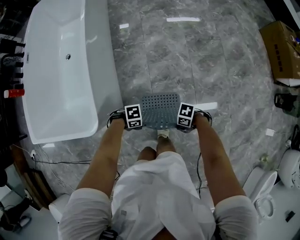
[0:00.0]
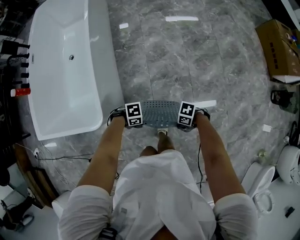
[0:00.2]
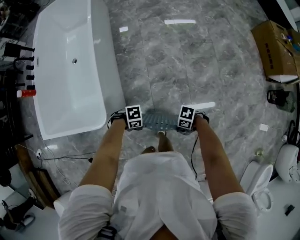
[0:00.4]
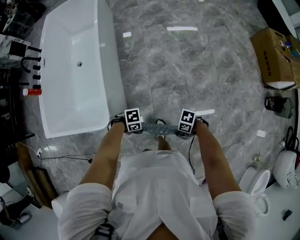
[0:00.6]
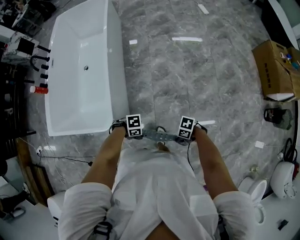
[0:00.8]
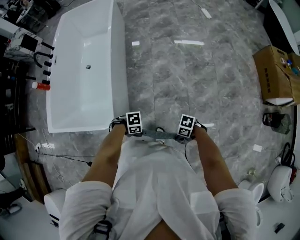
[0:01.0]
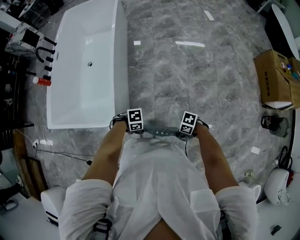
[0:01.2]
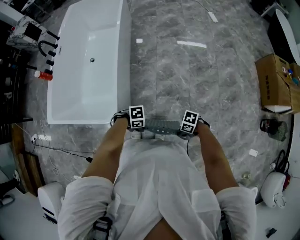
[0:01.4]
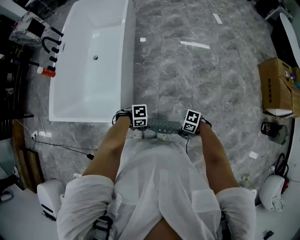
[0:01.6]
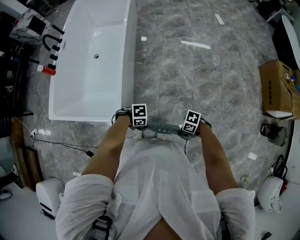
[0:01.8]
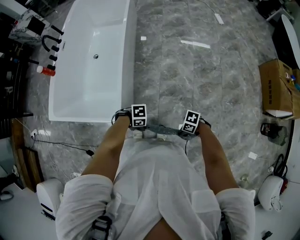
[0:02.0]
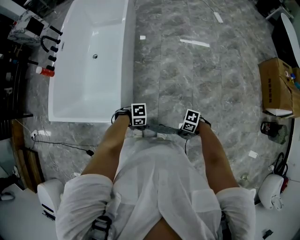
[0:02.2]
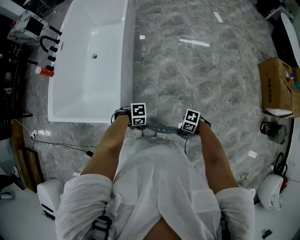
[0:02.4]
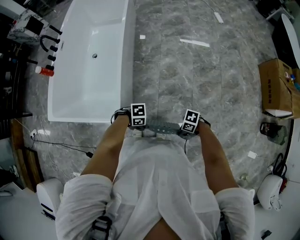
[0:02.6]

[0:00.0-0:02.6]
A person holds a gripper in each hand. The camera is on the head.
0:00.0 to 0:01.2: The two grippers go about 25 cm upward.
0:01.2 to 0:02.6: The grippers move only a little.

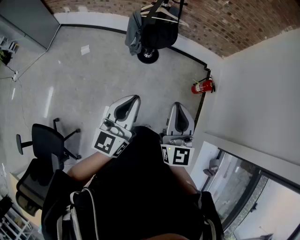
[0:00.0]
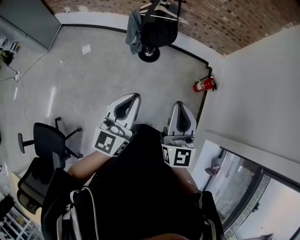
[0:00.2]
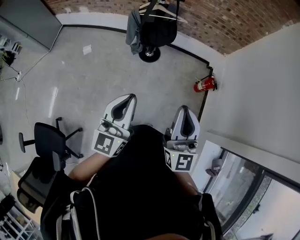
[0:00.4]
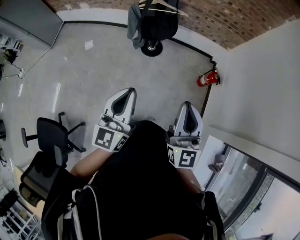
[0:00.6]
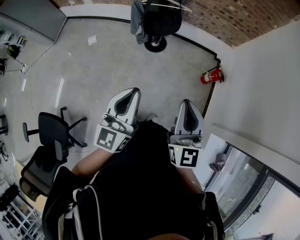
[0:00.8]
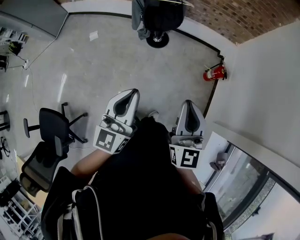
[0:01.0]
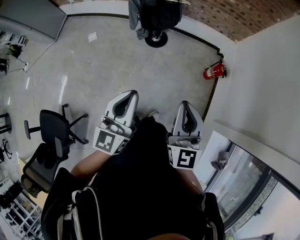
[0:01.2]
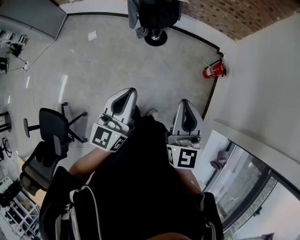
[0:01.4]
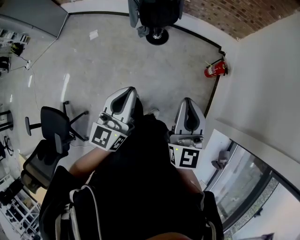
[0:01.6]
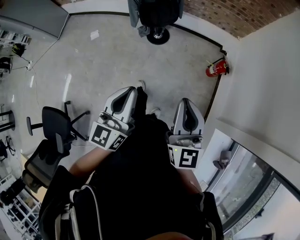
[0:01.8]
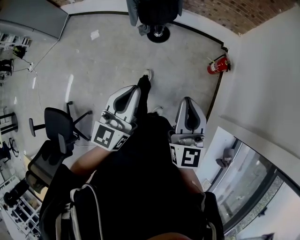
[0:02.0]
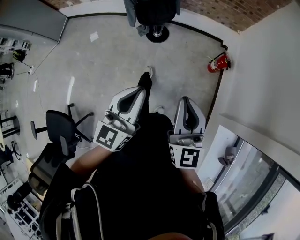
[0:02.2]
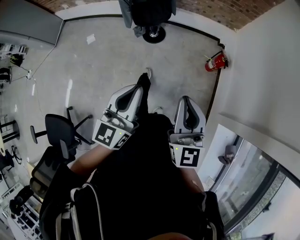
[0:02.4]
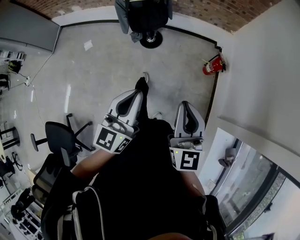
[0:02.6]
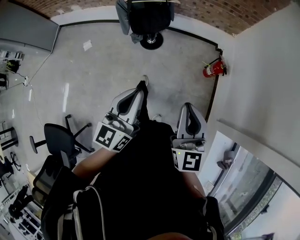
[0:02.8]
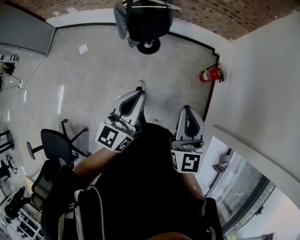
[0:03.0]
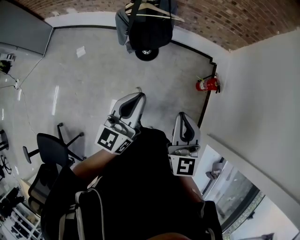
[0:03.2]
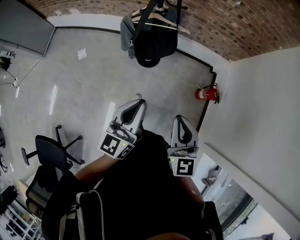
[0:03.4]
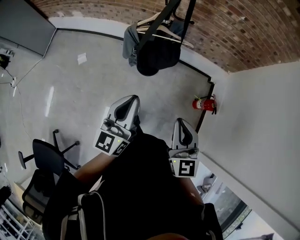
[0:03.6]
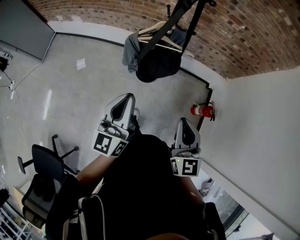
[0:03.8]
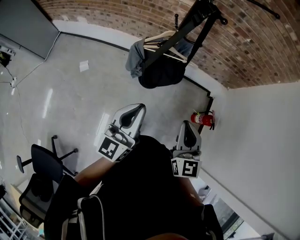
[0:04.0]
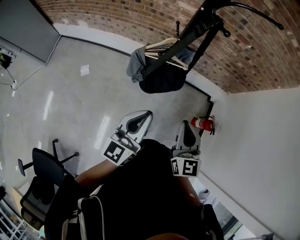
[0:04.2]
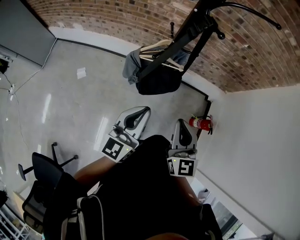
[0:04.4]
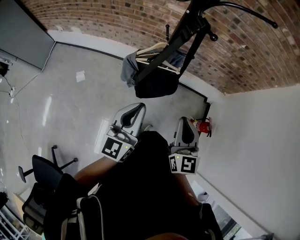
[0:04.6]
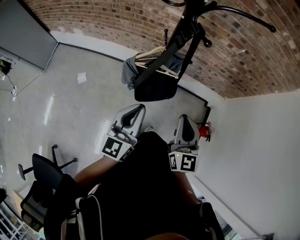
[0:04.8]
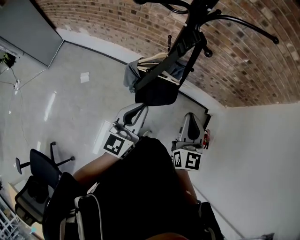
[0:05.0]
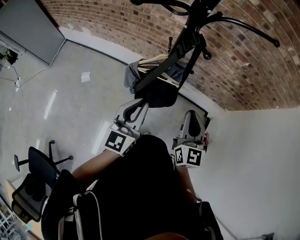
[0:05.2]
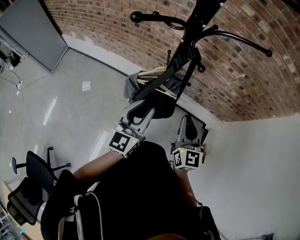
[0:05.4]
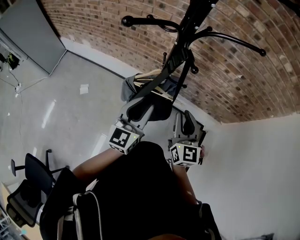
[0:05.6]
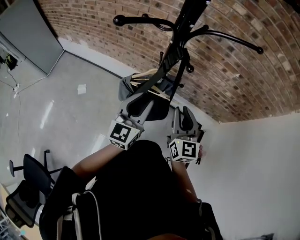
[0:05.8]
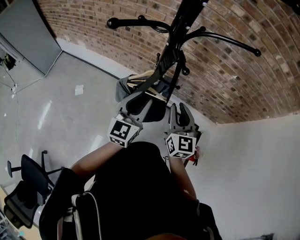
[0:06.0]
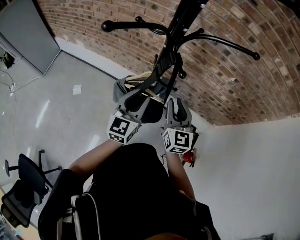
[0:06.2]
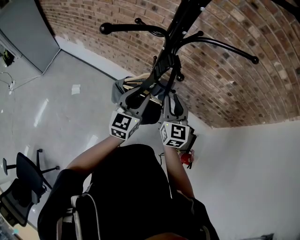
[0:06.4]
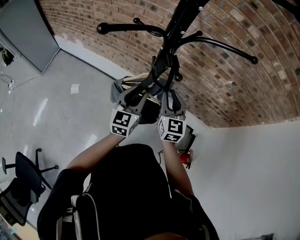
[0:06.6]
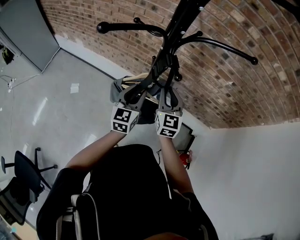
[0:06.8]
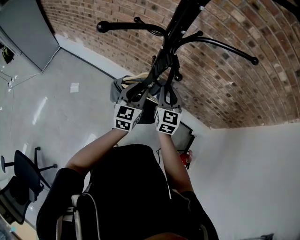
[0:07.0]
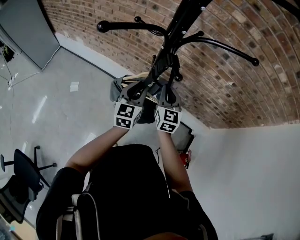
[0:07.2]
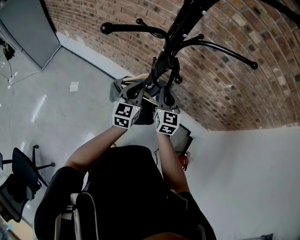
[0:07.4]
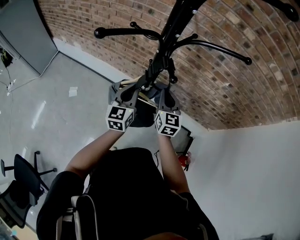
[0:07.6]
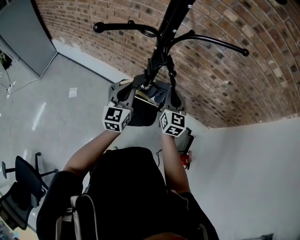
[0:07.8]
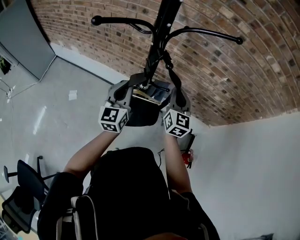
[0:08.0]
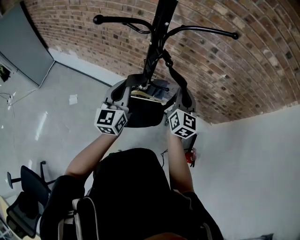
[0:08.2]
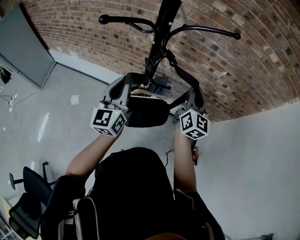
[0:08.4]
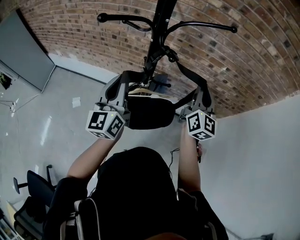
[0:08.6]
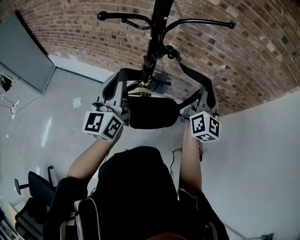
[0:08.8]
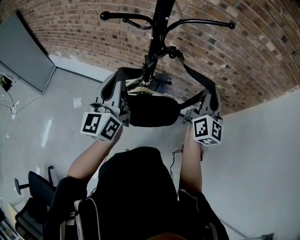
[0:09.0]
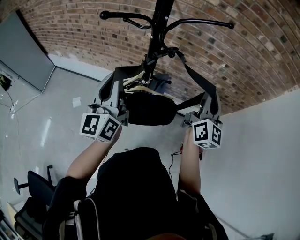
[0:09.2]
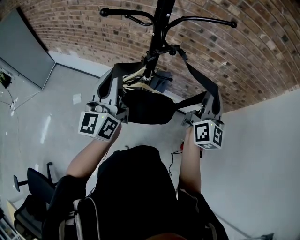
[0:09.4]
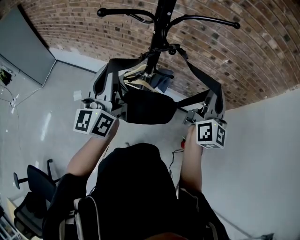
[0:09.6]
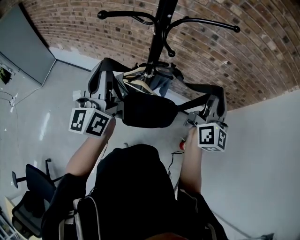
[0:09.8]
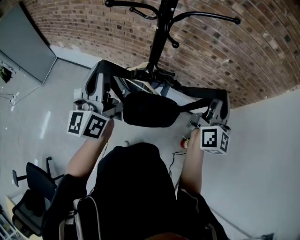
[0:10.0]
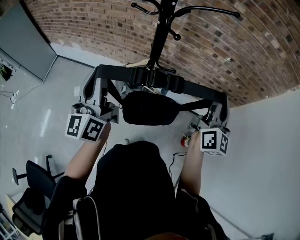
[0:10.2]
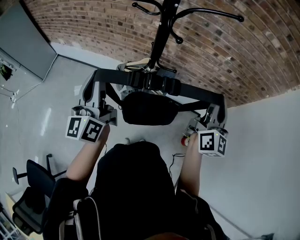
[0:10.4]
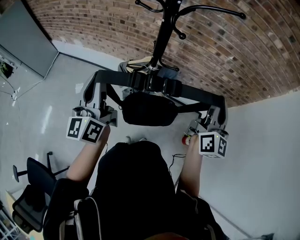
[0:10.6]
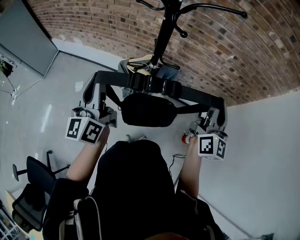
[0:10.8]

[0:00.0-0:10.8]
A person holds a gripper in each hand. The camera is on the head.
0:00.0 to 0:01.6: Both grippers move to the right, approximately 10 cm.
0:01.6 to 0:03.0: The two grippers go about 10 cm forward.
0:03.0 to 0:04.6: The right gripper goes about 30 cm forward; the left gripper is displaced forward and to the left by roughly 30 cm.
0:04.6 to 0:06.2: Both grippers travel together forward, some 20 cm. The left gripper opens its fingers.
0:06.2 to 0:07.8: The grippers both shift forward by about 5 cm. The left gripper closes up.
0:07.8 to 0:09.2: The right gripper moves upward, to the right and backward, roughly 20 cm, and changes its angle by some 30 degrees; the left gripper travels upward and backward by some 20 cm, and changes its angle by approximately 20 degrees.
0:09.2 to 0:10.8: The right gripper goes roughly 10 cm backward. Meanwhile the left gripper shifts some 10 cm backward and to the left.

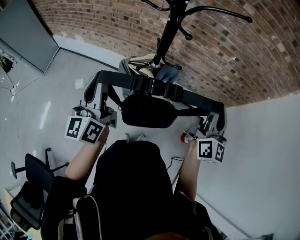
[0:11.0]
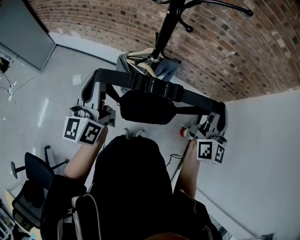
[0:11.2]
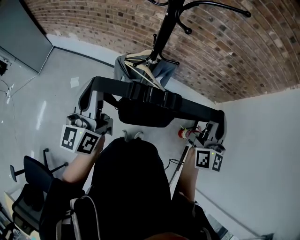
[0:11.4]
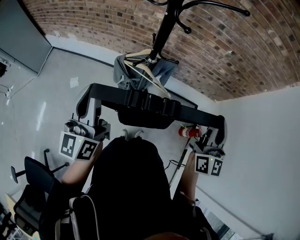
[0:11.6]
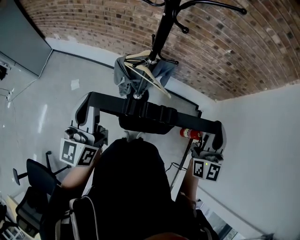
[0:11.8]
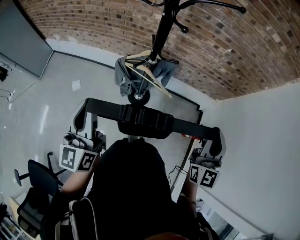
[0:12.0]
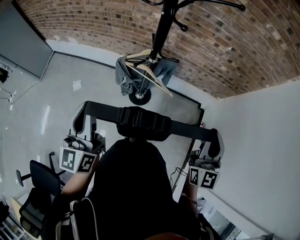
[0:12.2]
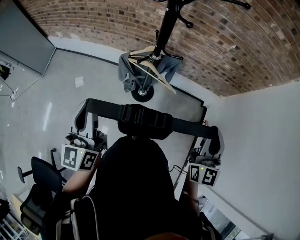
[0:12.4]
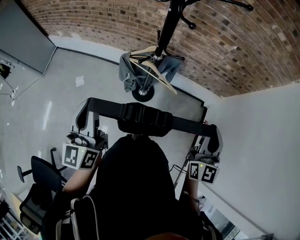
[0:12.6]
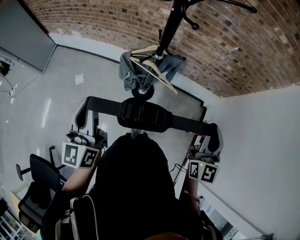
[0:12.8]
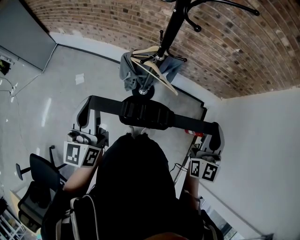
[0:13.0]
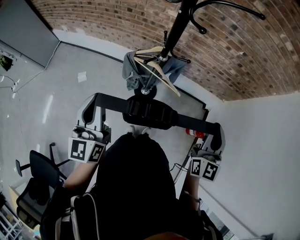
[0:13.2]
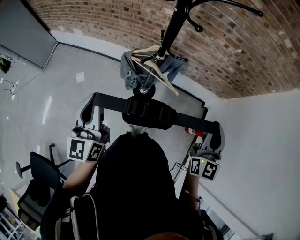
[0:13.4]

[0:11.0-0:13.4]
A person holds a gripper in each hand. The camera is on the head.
0:11.0 to 0:12.2: The two grippers go roughly 10 cm backward. The right gripper rotates roughly 20 degrees.
0:12.2 to 0:13.4: The right gripper moves approximately 5 cm.

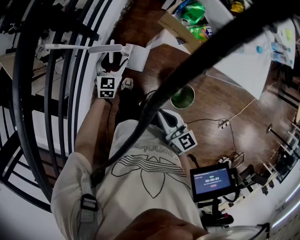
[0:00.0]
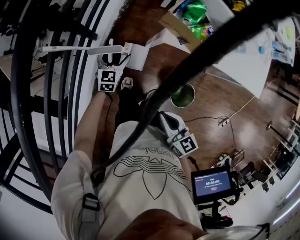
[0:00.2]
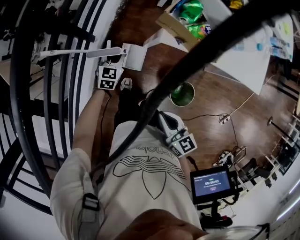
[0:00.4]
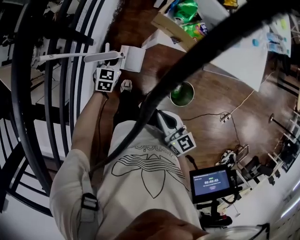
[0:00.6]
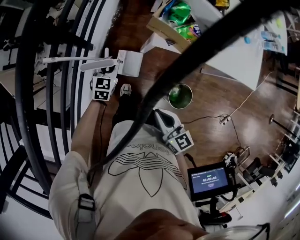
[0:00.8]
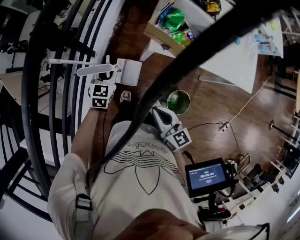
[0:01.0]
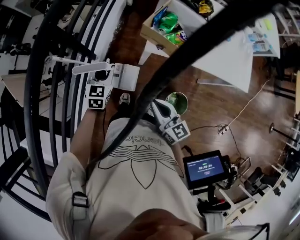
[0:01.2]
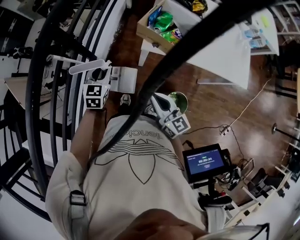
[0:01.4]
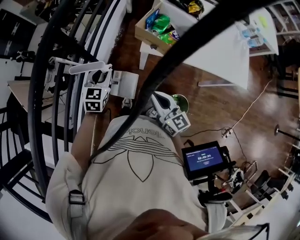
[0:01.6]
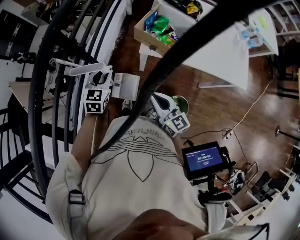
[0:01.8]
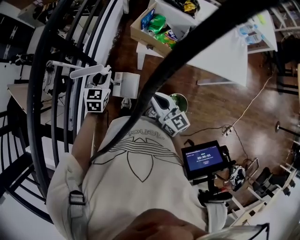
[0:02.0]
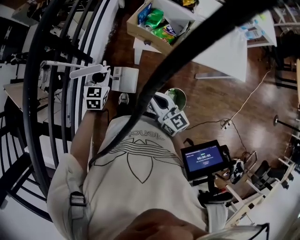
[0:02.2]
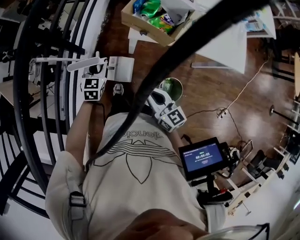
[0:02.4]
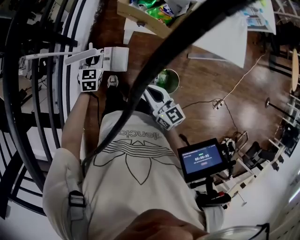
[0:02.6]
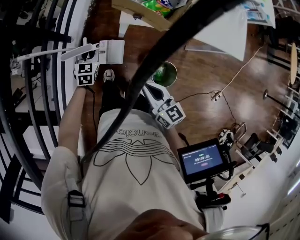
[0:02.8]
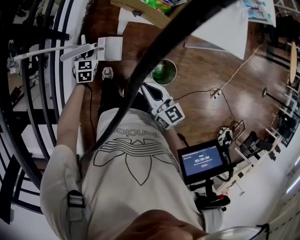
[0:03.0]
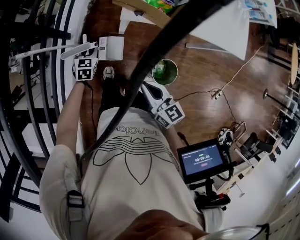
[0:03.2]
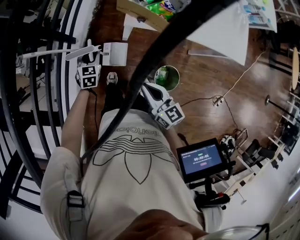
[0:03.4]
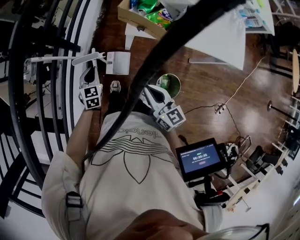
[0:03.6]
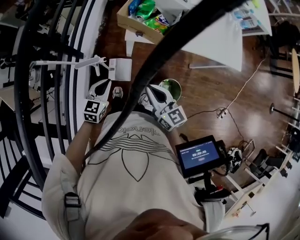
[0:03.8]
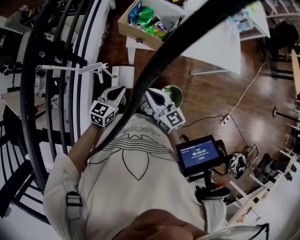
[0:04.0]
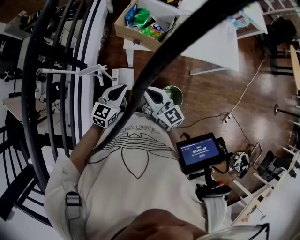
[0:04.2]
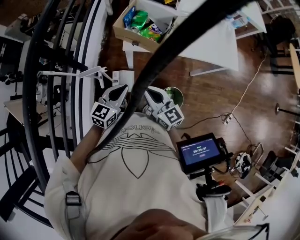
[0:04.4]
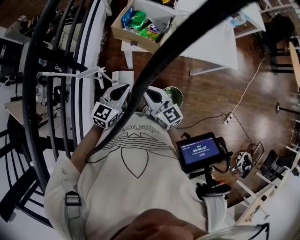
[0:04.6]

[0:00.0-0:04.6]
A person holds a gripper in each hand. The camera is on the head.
0:00.0 to 0:01.6: The right gripper travels upward by about 10 cm, and turns by some 20 degrees; the left gripper moves upward, about 20 cm, and closes its fingers.
0:01.6 to 0:03.0: The left gripper heads downward, covering roughly 20 cm, while the right gripper changes place by about 5 cm.
0:03.0 to 0:04.6: The right gripper changes place by about 5 cm, while the left gripper heads upward, backward and to the right, covering about 25 cm, and rotates some 30 degrees.

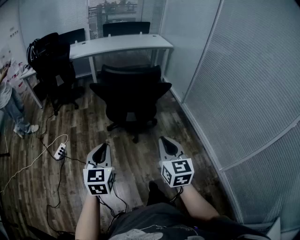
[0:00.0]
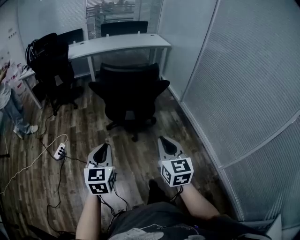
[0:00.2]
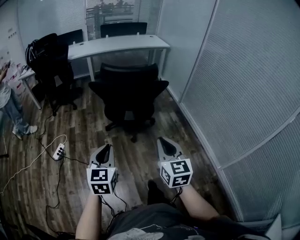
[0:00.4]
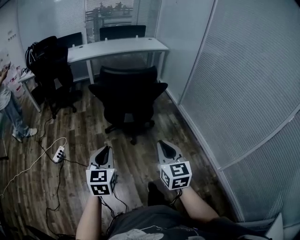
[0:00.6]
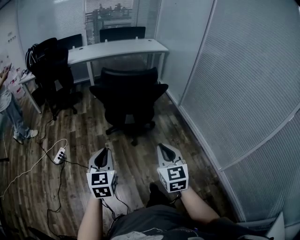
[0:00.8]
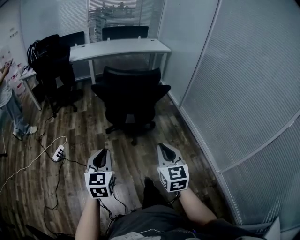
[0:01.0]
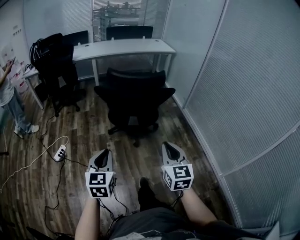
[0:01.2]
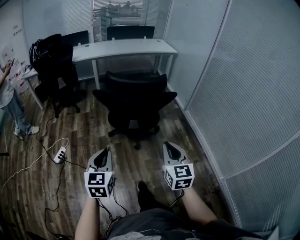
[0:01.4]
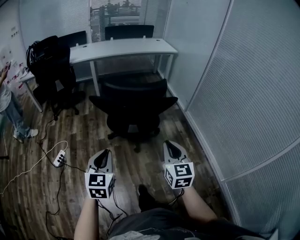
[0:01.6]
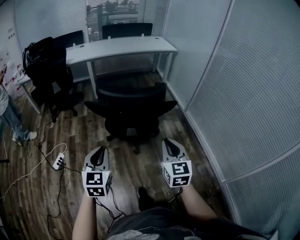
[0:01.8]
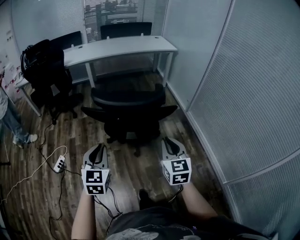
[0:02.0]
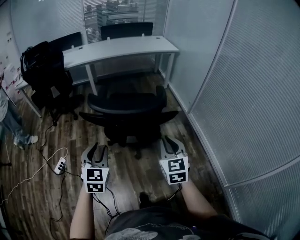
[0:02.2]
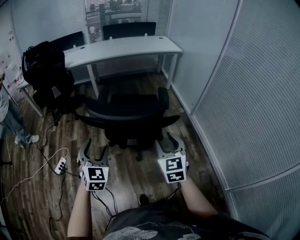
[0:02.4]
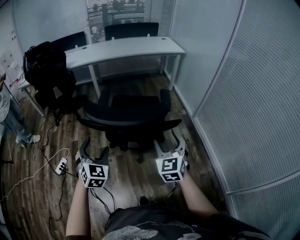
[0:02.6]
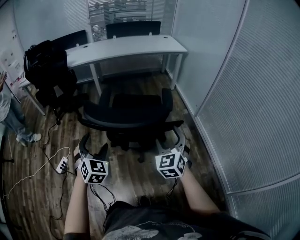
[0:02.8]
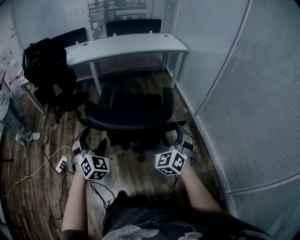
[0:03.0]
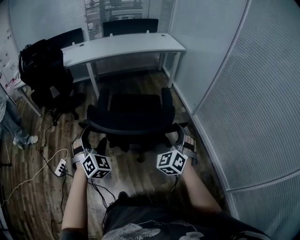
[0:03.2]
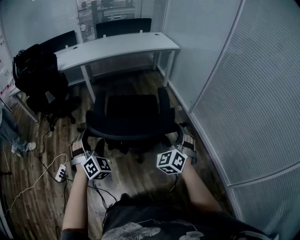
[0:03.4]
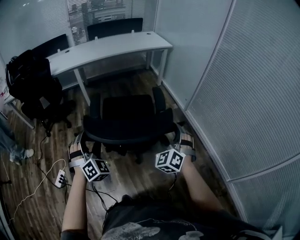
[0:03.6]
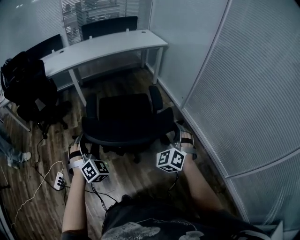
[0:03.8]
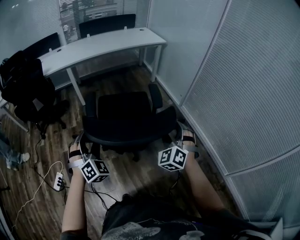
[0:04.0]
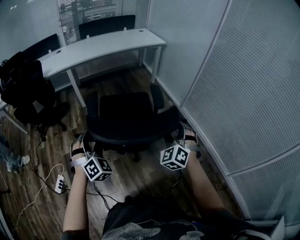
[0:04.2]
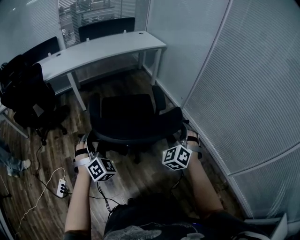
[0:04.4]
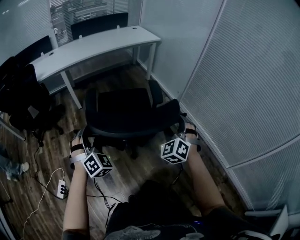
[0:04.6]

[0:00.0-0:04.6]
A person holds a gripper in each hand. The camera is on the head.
0:00.0 to 0:01.6: The grippers both shift forward by about 10 cm.
0:01.6 to 0:03.0: The two grippers go approximately 25 cm forward. The left gripper turns by roughly 40 degrees, and opens. Meanwhile the right gripper rotates around the line of its fingers by some 40 degrees, counterclockwise from behind, and opens up.
0:03.0 to 0:04.6: The left gripper goes approximately 15 cm forward; the right gripper moves forward, about 10 cm.
